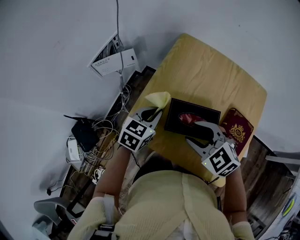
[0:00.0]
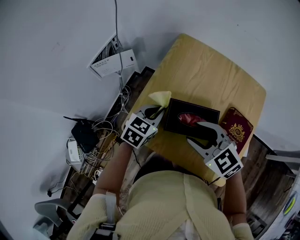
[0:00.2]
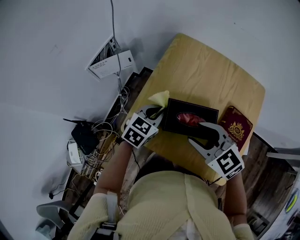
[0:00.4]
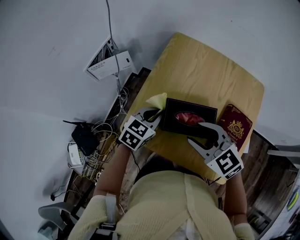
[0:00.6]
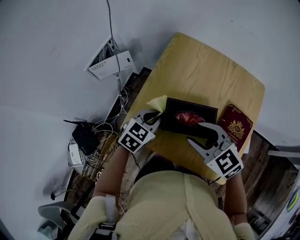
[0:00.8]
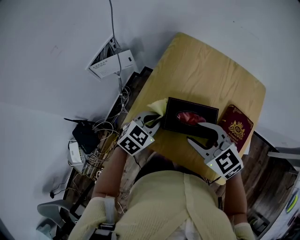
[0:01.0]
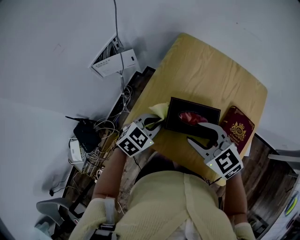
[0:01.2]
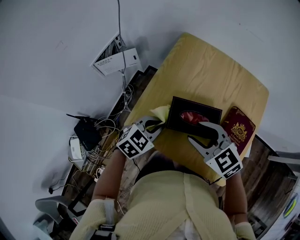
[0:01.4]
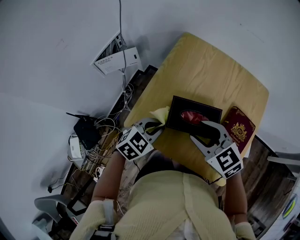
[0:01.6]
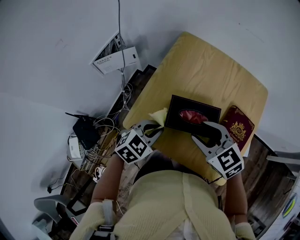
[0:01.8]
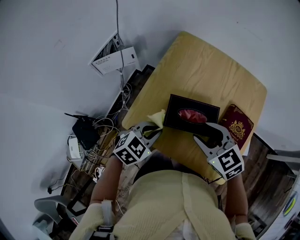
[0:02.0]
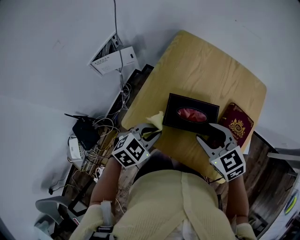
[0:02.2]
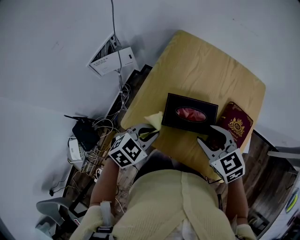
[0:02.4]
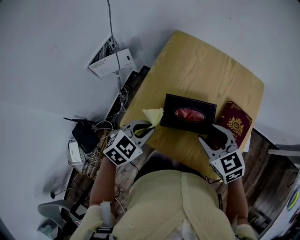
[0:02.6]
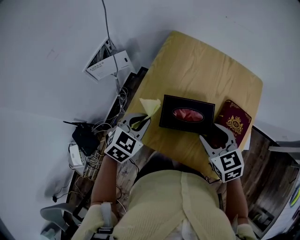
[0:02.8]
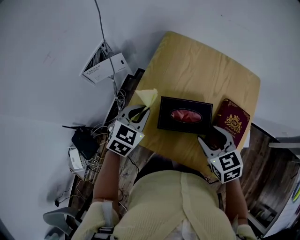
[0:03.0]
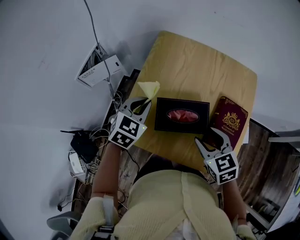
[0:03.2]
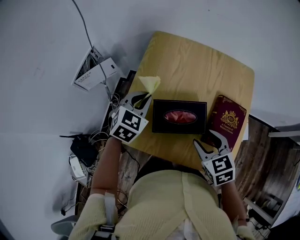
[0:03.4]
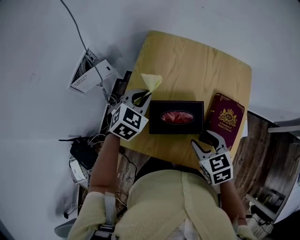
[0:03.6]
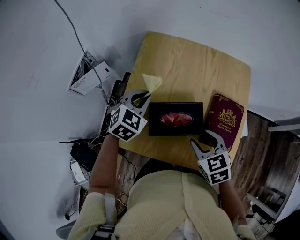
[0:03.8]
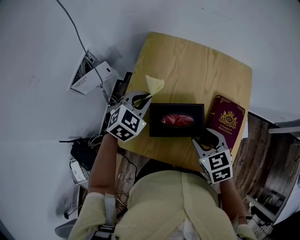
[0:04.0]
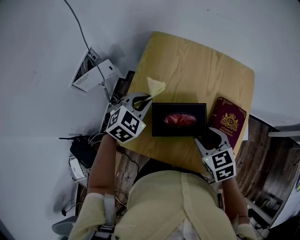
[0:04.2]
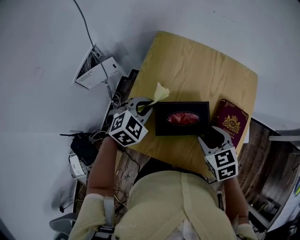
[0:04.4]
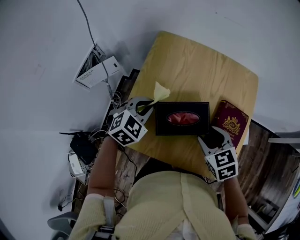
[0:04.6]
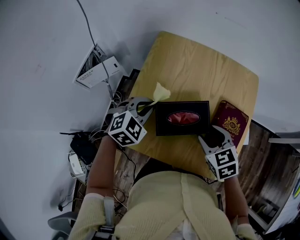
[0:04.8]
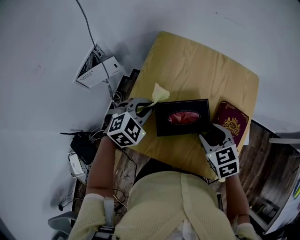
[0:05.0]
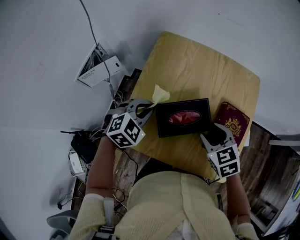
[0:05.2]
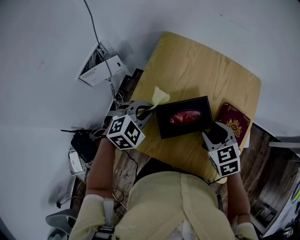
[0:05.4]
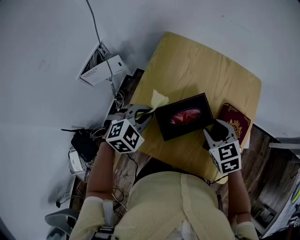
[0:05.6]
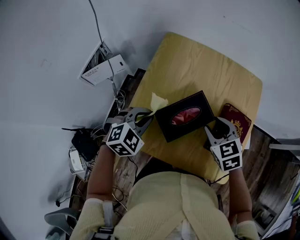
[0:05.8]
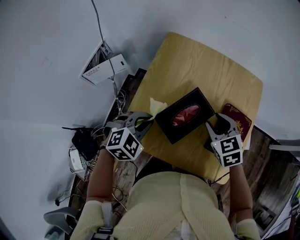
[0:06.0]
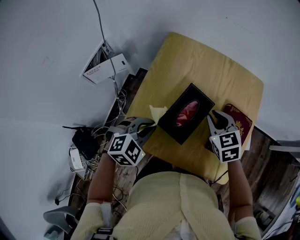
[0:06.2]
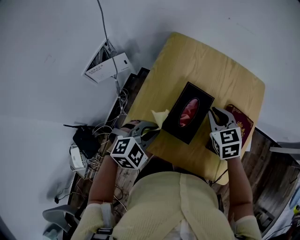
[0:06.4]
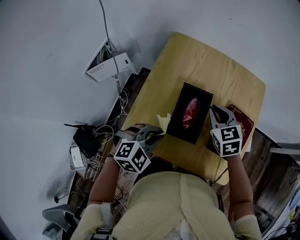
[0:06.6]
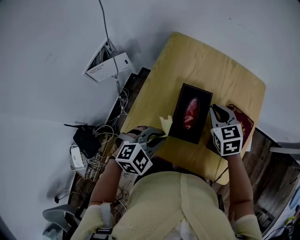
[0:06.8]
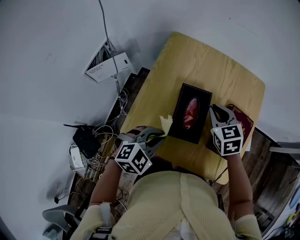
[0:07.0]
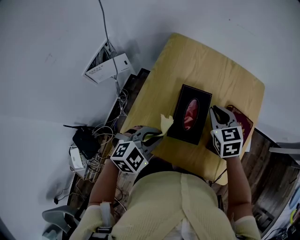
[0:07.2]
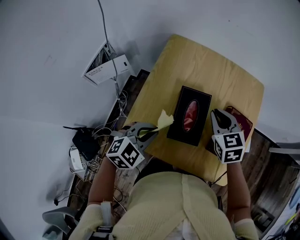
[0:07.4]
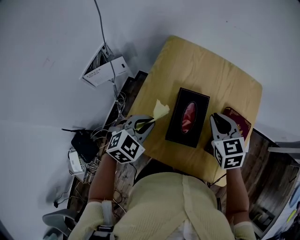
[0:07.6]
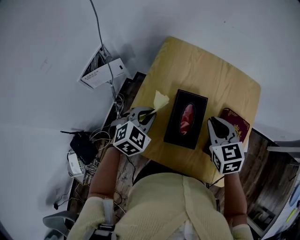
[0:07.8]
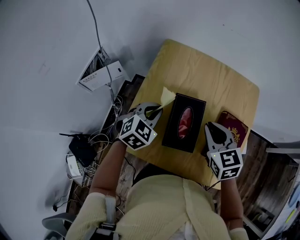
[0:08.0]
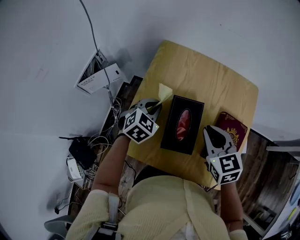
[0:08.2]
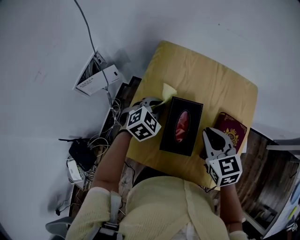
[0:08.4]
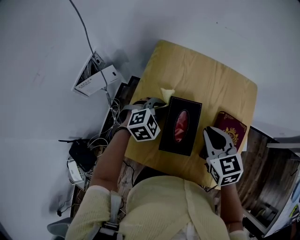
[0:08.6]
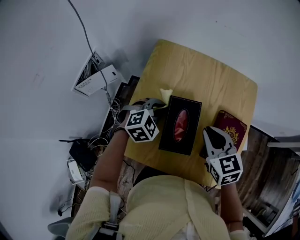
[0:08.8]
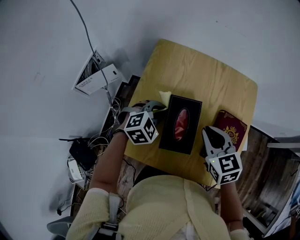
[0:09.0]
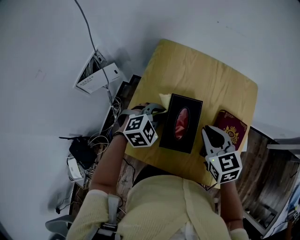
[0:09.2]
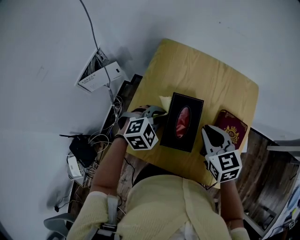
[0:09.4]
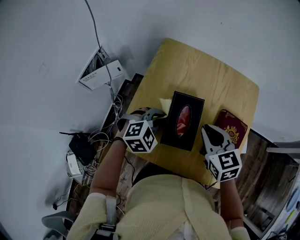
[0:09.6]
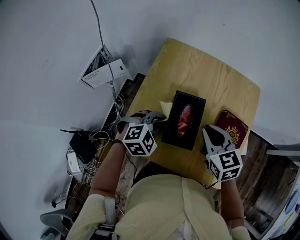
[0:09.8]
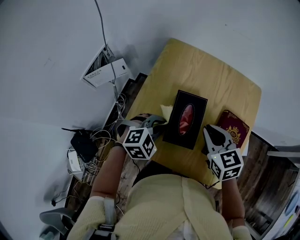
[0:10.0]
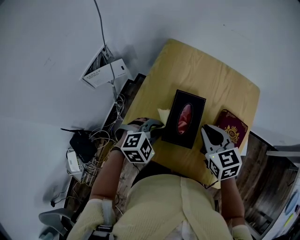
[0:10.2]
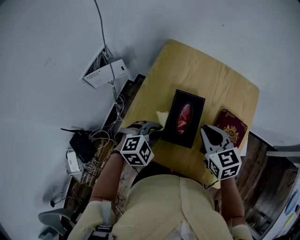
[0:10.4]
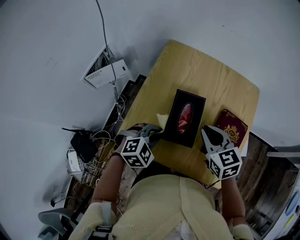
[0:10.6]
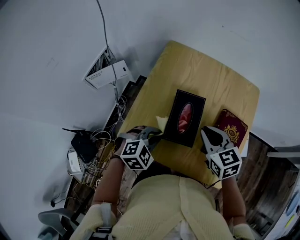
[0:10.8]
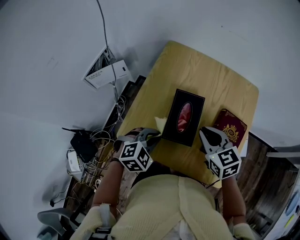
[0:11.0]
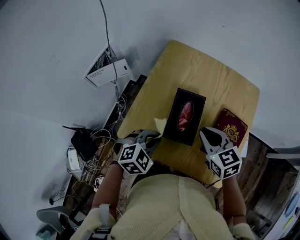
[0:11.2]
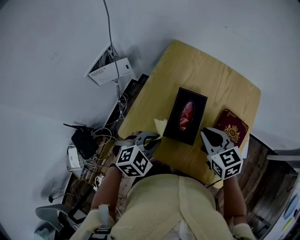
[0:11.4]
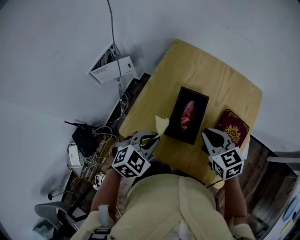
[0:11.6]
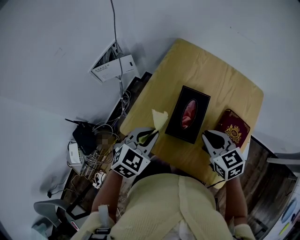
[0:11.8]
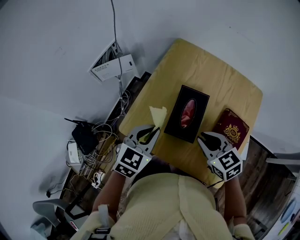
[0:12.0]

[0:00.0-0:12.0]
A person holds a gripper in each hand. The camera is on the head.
0.0 to 1.6 s: The left gripper heads backward, covering roughly 5 cm, and turns by some 20 degrees.
1.6 to 3.0 s: The right gripper heads to the right, covering roughly 10 cm, and rotates about 30 degrees, while the left gripper moves forward, about 5 cm.
3.0 to 4.4 s: The left gripper moves roughly 5 cm, and changes its angle by some 20 degrees.
4.4 to 6.0 s: The right gripper goes roughly 5 cm forward, while the left gripper shifts roughly 5 cm backward.
6.0 to 7.6 s: The right gripper closes its fingers.
7.6 to 9.0 s: The left gripper moves forward and to the right, roughly 10 cm.
9.0 to 10.4 s: The left gripper is displaced backward by roughly 10 cm.
10.4 to 12.0 s: The left gripper shifts approximately 10 cm upward, and changes its angle by roughly 40 degrees. The right gripper travels backward by about 5 cm.

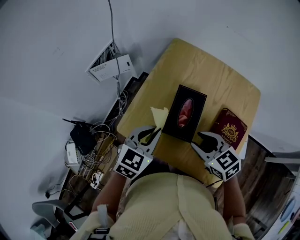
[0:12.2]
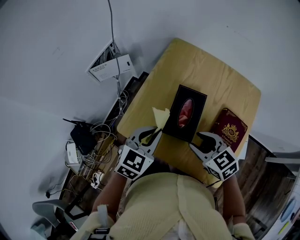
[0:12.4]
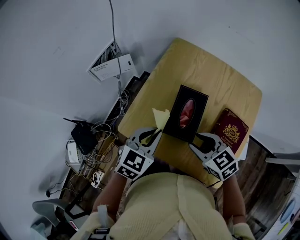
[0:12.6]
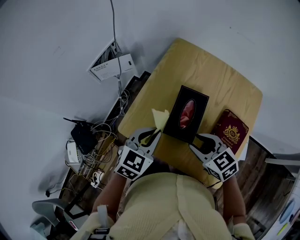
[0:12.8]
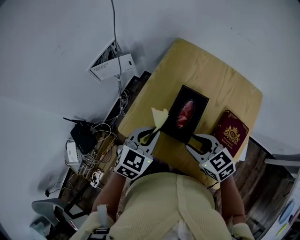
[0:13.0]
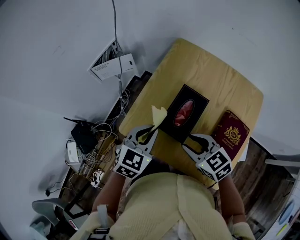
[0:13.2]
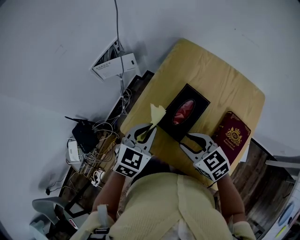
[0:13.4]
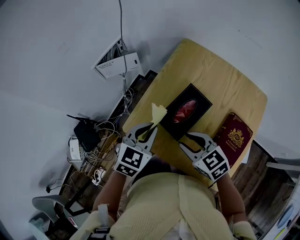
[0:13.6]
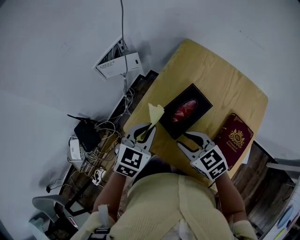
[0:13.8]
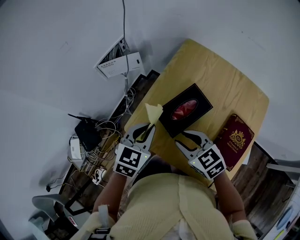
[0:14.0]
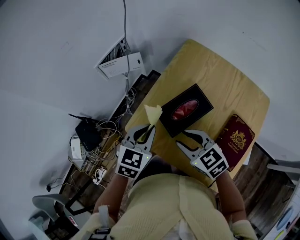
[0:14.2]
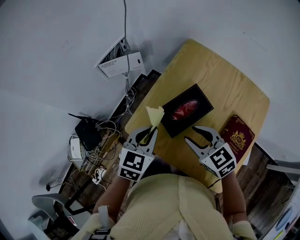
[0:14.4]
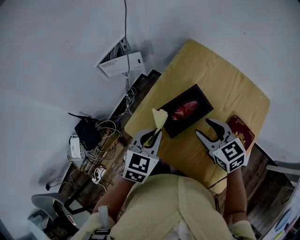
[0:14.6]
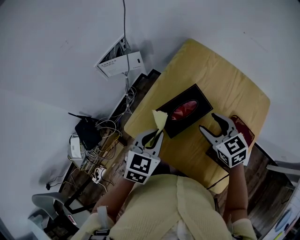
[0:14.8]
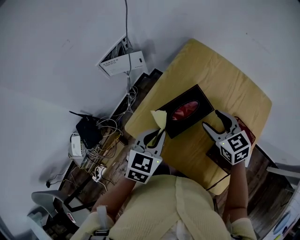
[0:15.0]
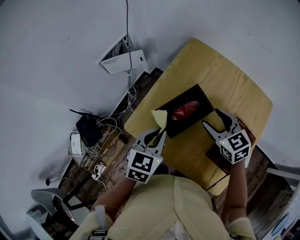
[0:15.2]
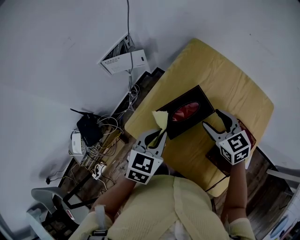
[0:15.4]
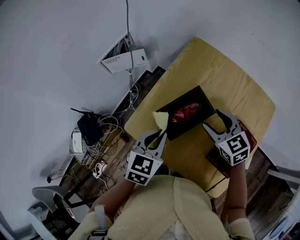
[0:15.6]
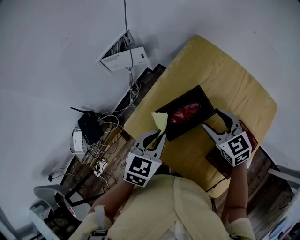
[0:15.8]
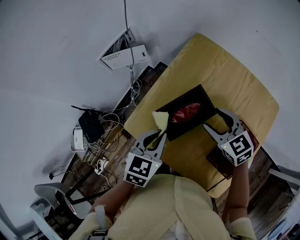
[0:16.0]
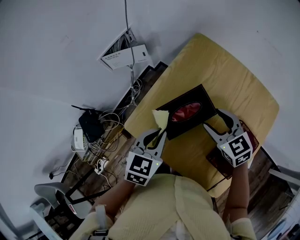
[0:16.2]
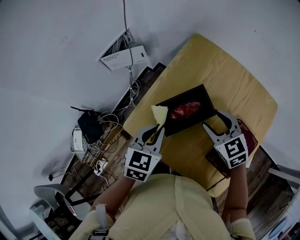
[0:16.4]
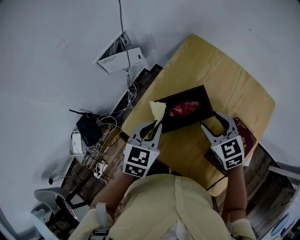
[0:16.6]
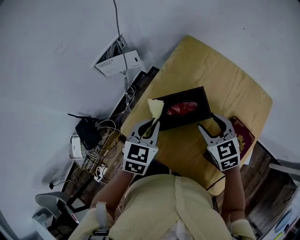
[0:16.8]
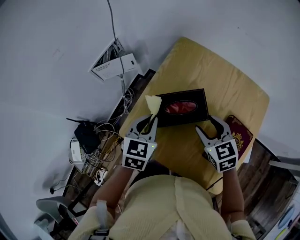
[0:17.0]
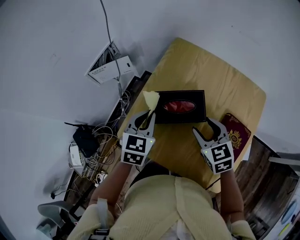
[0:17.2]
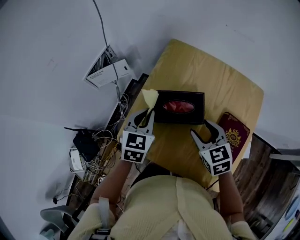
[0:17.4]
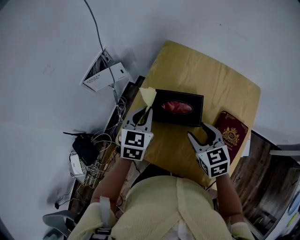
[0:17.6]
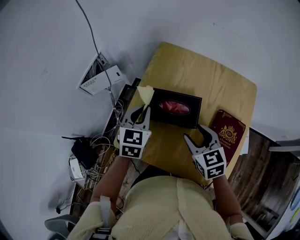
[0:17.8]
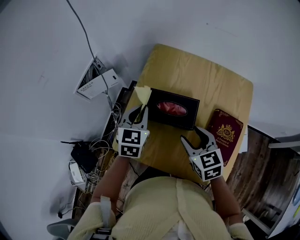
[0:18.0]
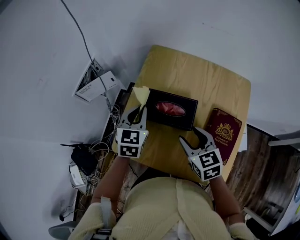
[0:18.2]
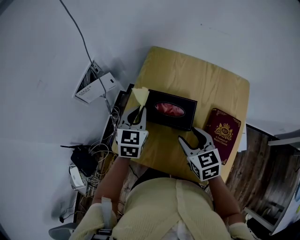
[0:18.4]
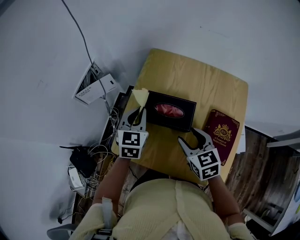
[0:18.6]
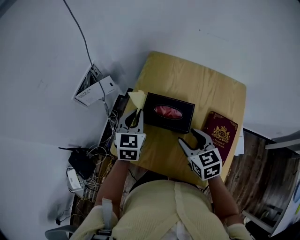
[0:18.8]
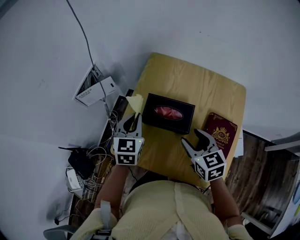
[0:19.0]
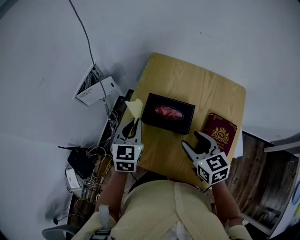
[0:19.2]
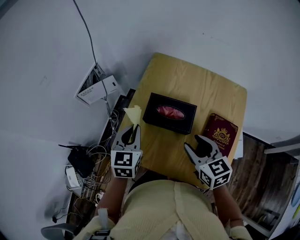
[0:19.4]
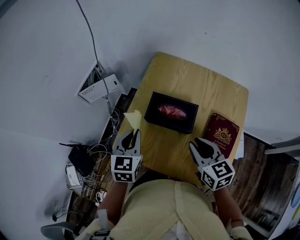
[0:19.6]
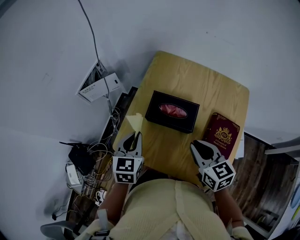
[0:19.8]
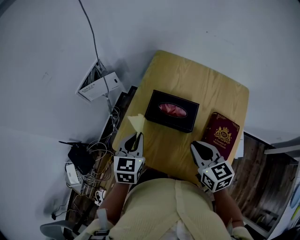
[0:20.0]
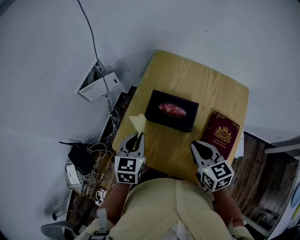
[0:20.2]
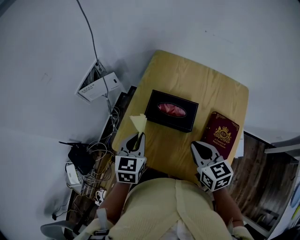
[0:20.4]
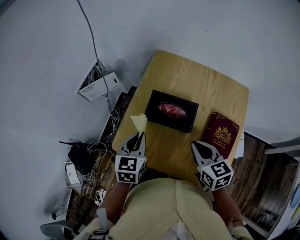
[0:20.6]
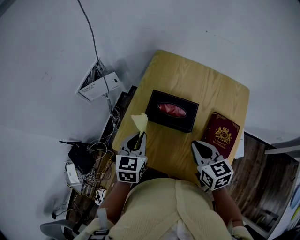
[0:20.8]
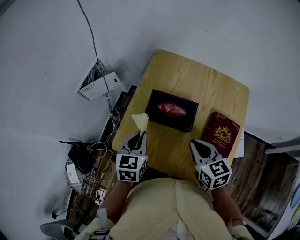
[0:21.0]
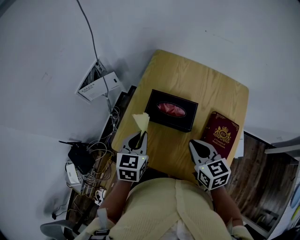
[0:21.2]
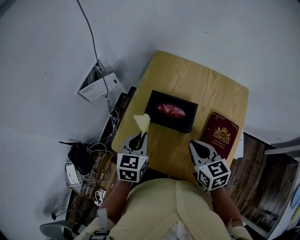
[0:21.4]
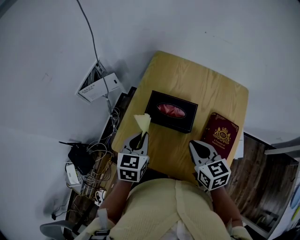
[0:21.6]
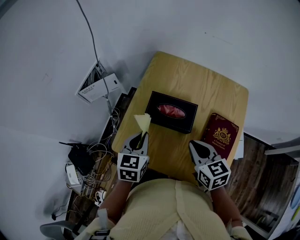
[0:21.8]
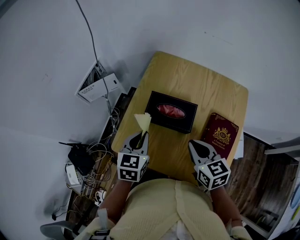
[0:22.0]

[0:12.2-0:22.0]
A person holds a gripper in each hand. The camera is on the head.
12.2 to 13.6 s: The right gripper travels to the left by about 5 cm.
13.6 to 15.0 s: The right gripper goes roughly 15 cm to the right and forward, and opens its fingers.
15.0 to 16.4 s: The grippers make only small movements.
16.4 to 17.8 s: The right gripper shifts approximately 5 cm backward, and changes its angle by about 30 degrees. Meanwhile the left gripper shifts about 10 cm forward.
17.8 to 19.2 s: The grippers move only a little.
19.2 to 20.6 s: The left gripper moves backward, some 5 cm. The right gripper closes up.
20.6 to 22.0 s: The grippers make only small movements.

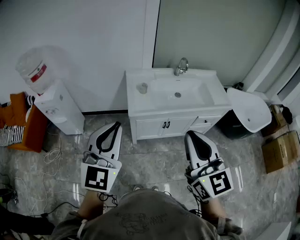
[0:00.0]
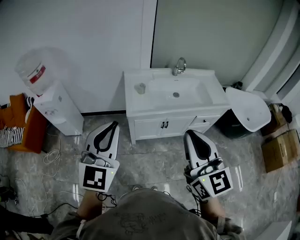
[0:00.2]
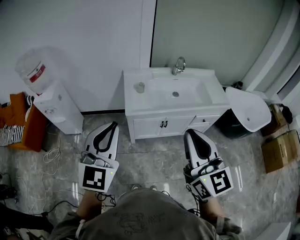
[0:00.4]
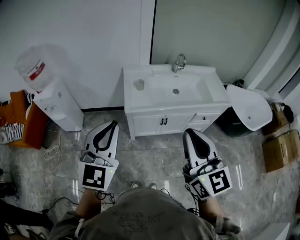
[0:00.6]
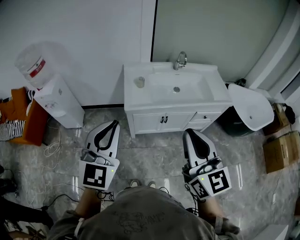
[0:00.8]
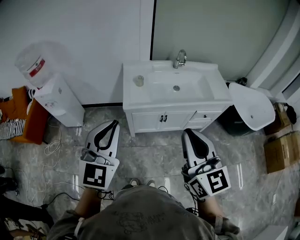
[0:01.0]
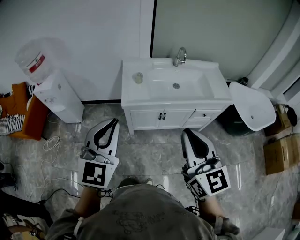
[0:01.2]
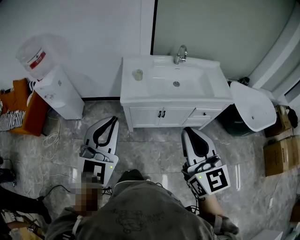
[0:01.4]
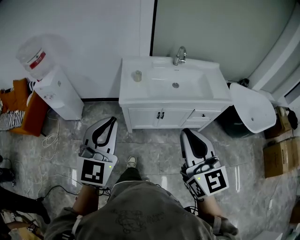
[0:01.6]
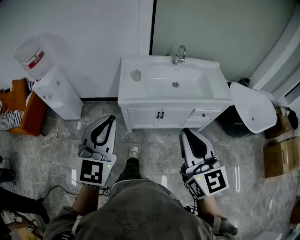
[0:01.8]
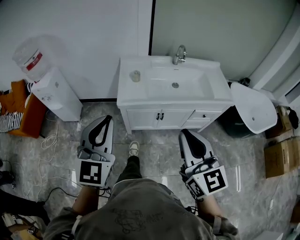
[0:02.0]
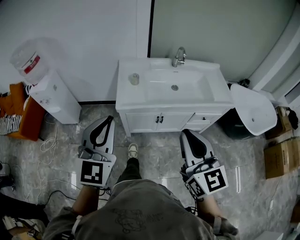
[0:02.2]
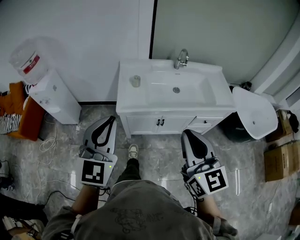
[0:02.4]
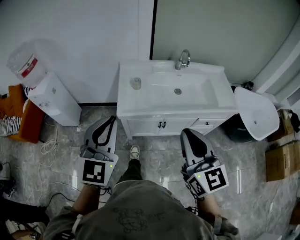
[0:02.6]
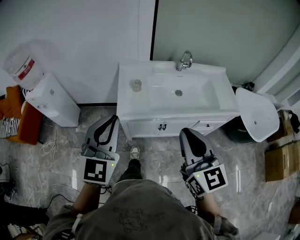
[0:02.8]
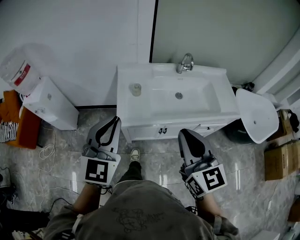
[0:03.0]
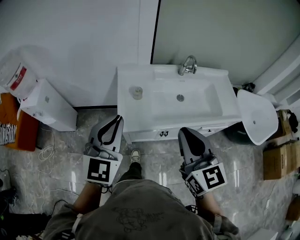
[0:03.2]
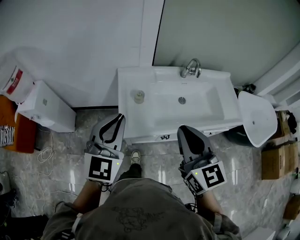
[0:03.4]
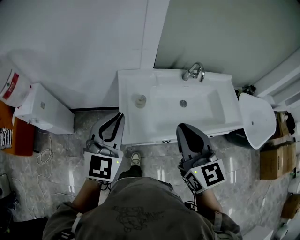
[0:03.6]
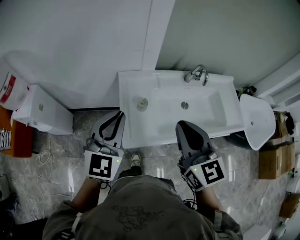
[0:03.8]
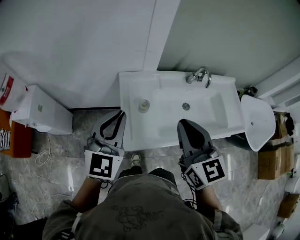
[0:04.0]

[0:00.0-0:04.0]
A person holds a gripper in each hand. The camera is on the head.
0.0 to 1.4 s: Both grippers move to the right, approximately 10 cm.
1.4 to 2.6 s: The grippers both shift forward by some 10 cm.
2.6 to 4.0 s: Both grippers travel together forward, roughly 30 cm.
